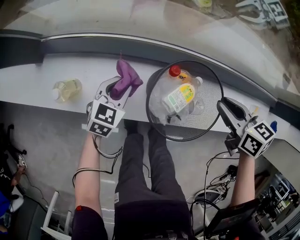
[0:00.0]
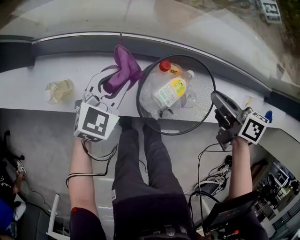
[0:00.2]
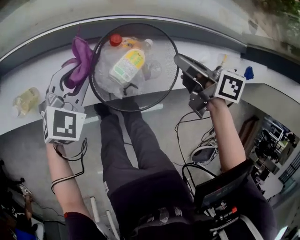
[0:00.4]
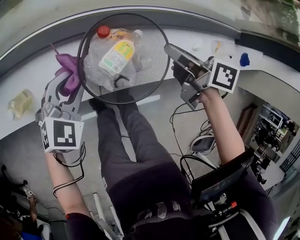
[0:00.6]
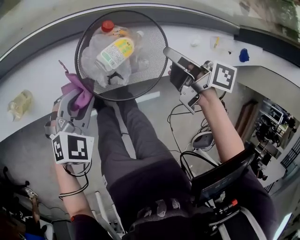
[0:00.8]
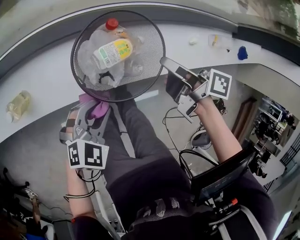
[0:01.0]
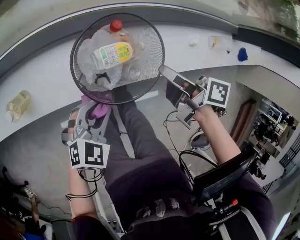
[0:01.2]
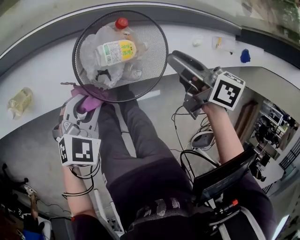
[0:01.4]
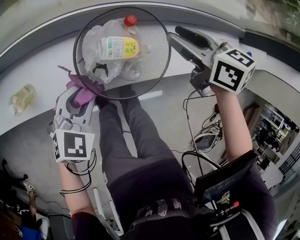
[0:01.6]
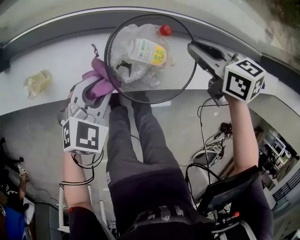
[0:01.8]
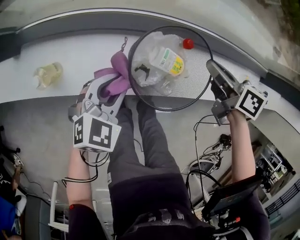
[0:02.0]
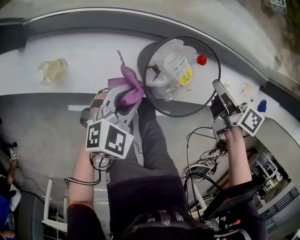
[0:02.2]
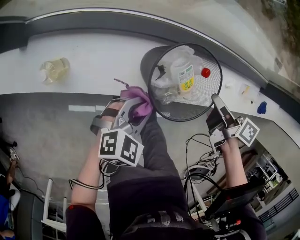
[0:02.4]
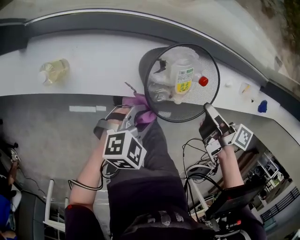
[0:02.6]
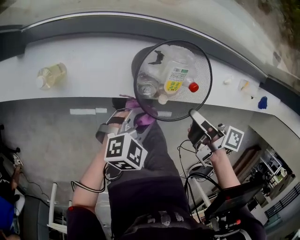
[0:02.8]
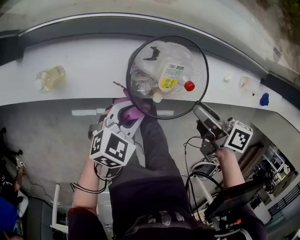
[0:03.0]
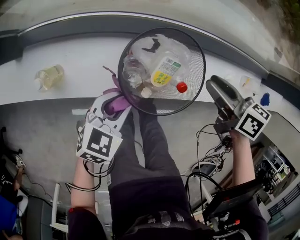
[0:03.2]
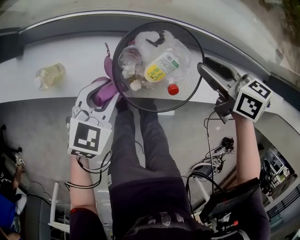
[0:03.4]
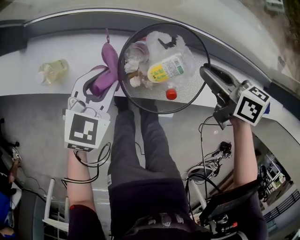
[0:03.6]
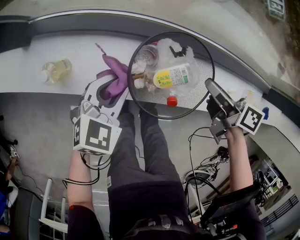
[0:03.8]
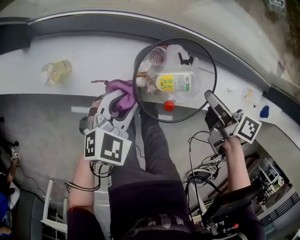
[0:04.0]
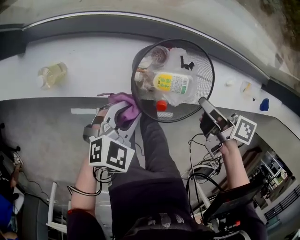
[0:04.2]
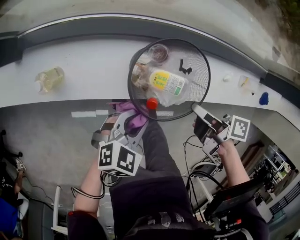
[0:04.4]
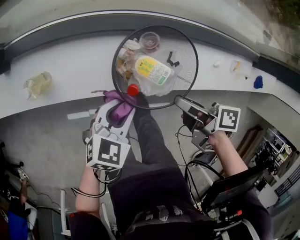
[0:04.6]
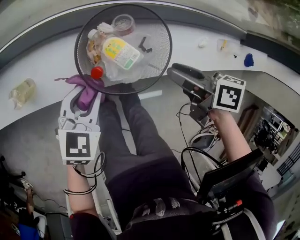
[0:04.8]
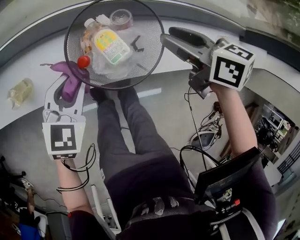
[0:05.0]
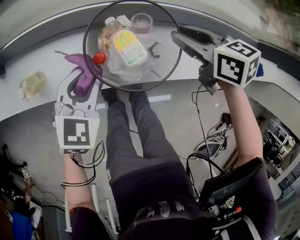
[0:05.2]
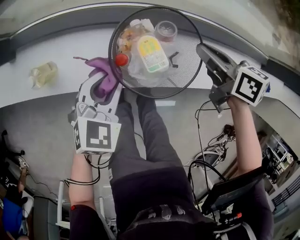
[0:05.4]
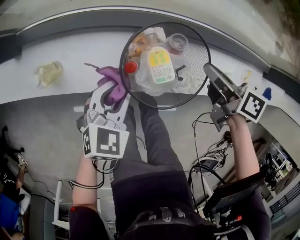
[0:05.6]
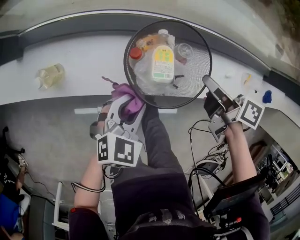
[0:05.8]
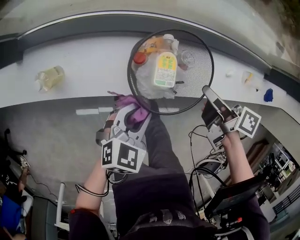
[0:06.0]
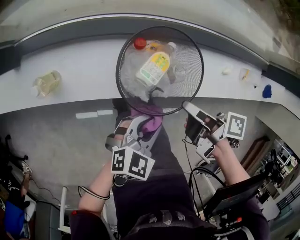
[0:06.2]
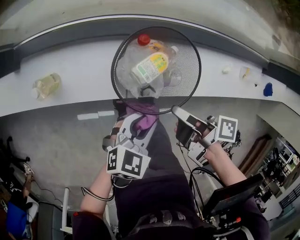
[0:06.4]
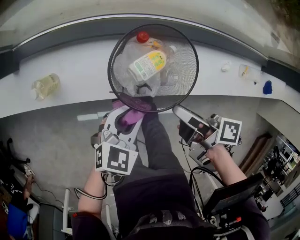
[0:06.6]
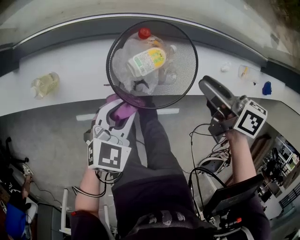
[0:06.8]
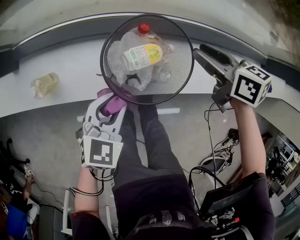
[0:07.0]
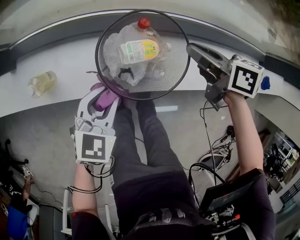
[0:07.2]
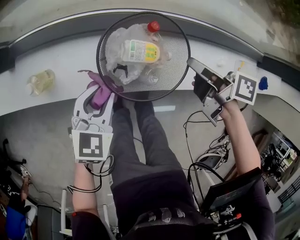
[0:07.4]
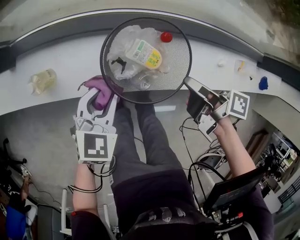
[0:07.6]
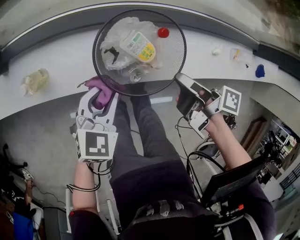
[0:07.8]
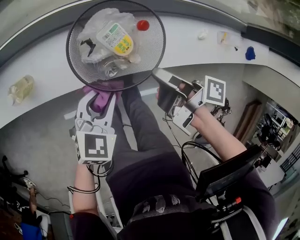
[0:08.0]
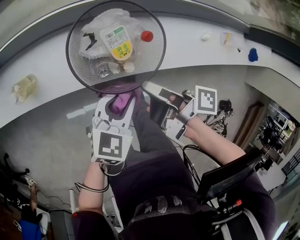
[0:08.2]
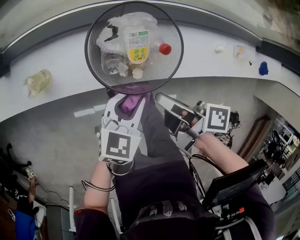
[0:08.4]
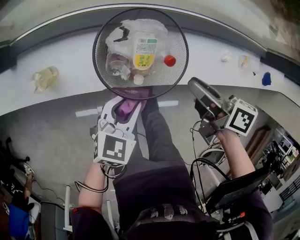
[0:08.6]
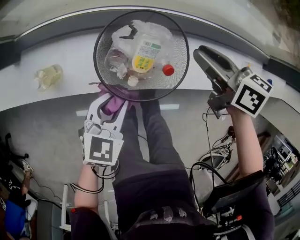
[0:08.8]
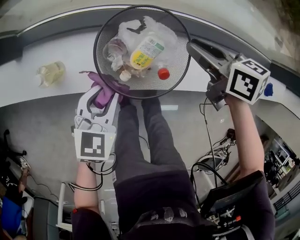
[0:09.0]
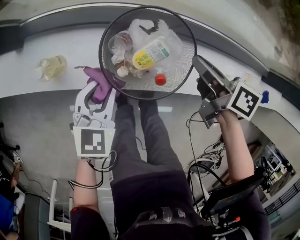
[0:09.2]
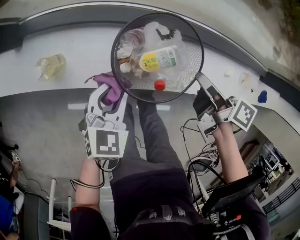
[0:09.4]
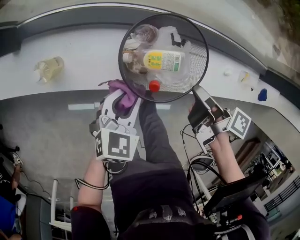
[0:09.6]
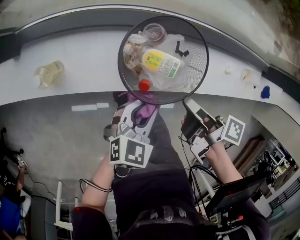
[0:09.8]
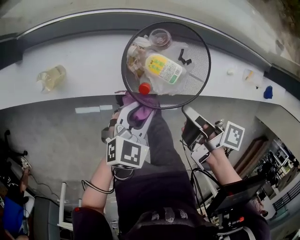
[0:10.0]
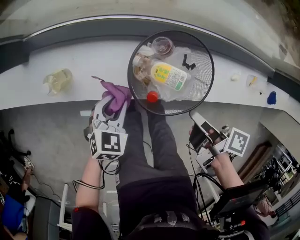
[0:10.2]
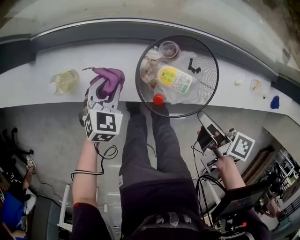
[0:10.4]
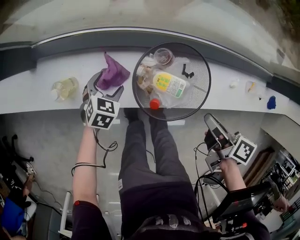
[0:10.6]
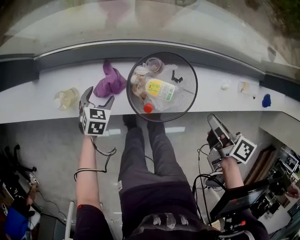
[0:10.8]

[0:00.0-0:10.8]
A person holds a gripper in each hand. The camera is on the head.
0:00.0 to 0:01.6: The left gripper is displaced upward, backward and to the right by roughly 15 cm, and turns by roughly 20 degrees, while the right gripper goes backward and returns, some 10 cm each way.
0:01.6 to 0:03.0: The right gripper moves backward, approximately 15 cm, and swivels roughly 40 degrees.
0:03.0 to 0:04.6: The right gripper reaches some 10 cm forward, then returns; the left gripper reaches roughly 10 cm forward, then returns.
0:04.6 to 0:06.2: The left gripper is displaced to the right by some 5 cm, and reaches approximately 10 cm forward, then returns. Meanwhile the right gripper moves some 15 cm forward and comes back.
0:06.2 to 0:07.8: The left gripper heads to the left and forward, covering about 10 cm. Meanwhile the right gripper travels forward and back again, some 15 cm each way, and opens, then closes again.
0:07.8 to 0:09.2: The left gripper travels to the left by some 10 cm. Meanwhile the right gripper travels forward and to the left by approximately 10 cm, and twists approximately 40 degrees counterclockwise, seen from behind.
0:09.2 to 0:10.8: The left gripper travels downward by roughly 10 cm, reaches some 15 cm to the right, then returns, and opens its fingers, while the right gripper travels backward, to the right and upward by roughly 15 cm.

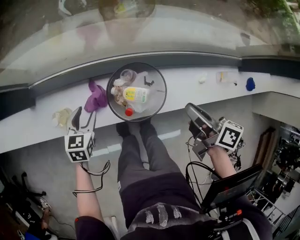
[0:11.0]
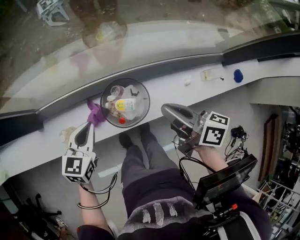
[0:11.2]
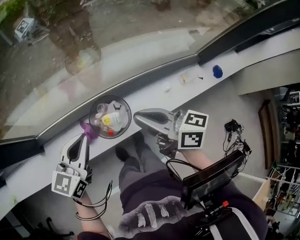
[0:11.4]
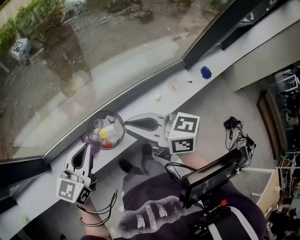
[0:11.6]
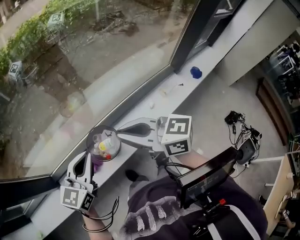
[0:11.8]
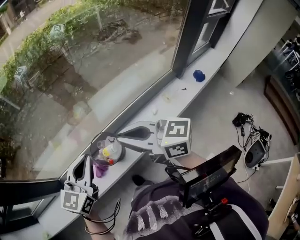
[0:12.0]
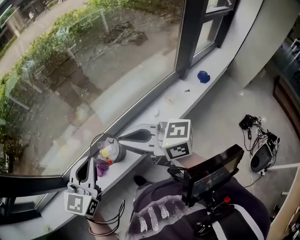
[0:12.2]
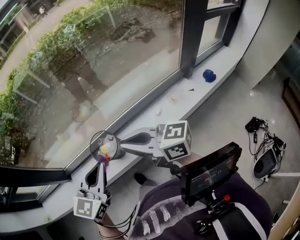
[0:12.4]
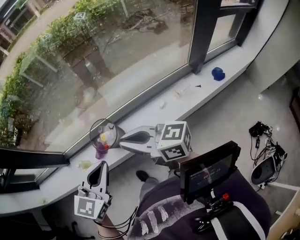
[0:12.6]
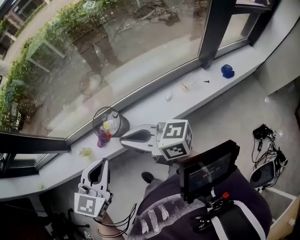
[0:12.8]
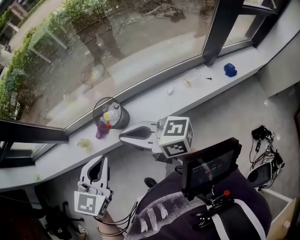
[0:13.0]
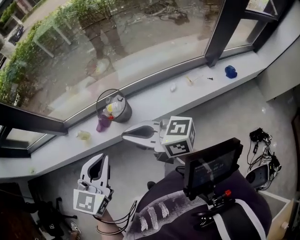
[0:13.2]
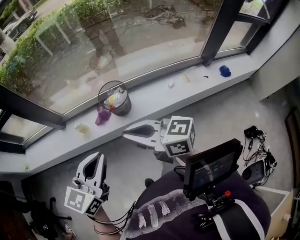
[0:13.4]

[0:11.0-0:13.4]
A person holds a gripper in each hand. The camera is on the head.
0:11.0 to 0:12.2: The right gripper goes some 35 cm upward and backward, and angles its fingers upward, by approximately 30 degrees. The left gripper goes some 50 cm upward and to the right, tilts its fingers approximately 30 degrees upward, and closes its fingers.
0:12.2 to 0:13.4: Both grippers travel together backward and to the left, approximately 25 cm.

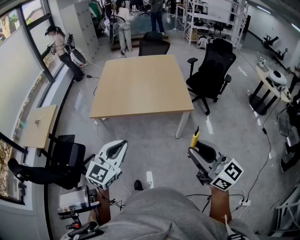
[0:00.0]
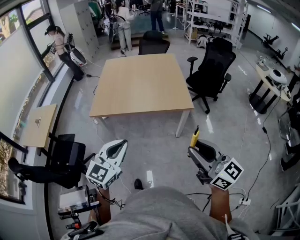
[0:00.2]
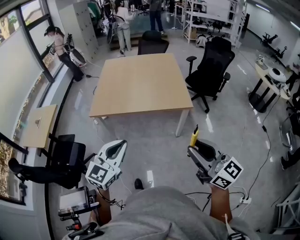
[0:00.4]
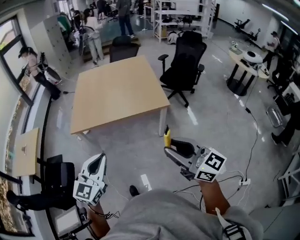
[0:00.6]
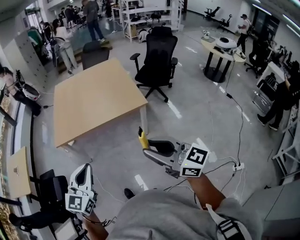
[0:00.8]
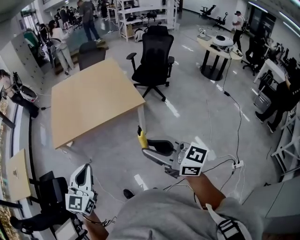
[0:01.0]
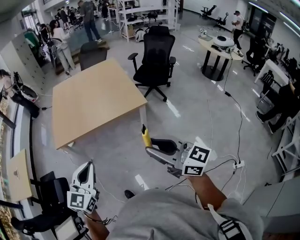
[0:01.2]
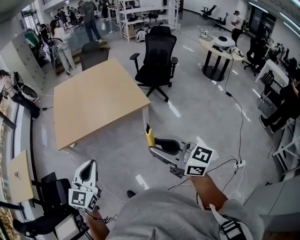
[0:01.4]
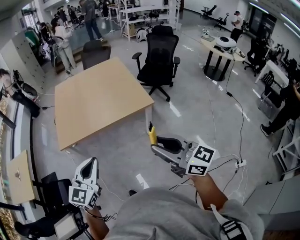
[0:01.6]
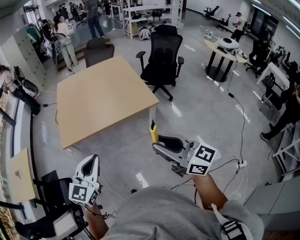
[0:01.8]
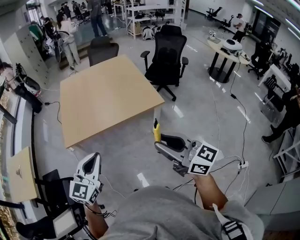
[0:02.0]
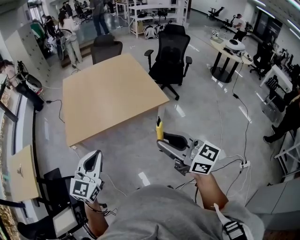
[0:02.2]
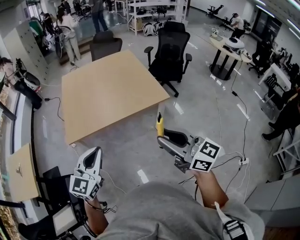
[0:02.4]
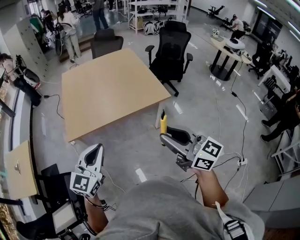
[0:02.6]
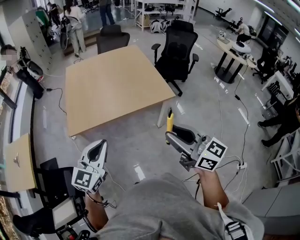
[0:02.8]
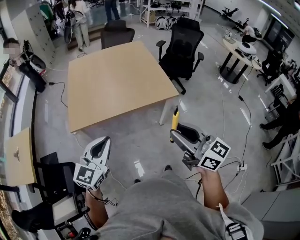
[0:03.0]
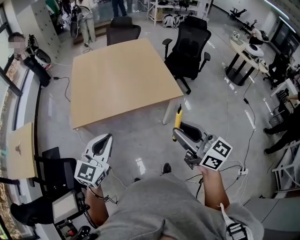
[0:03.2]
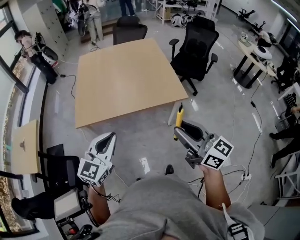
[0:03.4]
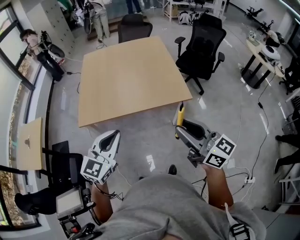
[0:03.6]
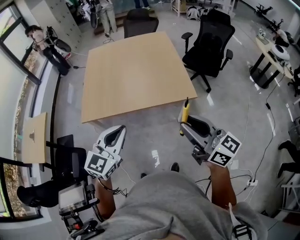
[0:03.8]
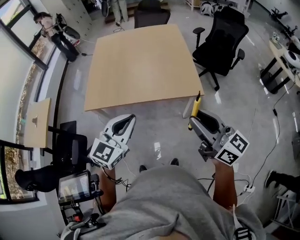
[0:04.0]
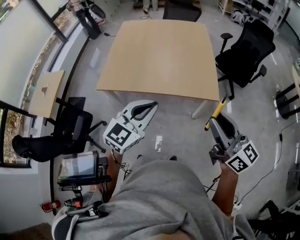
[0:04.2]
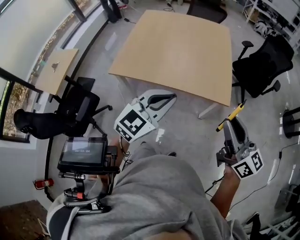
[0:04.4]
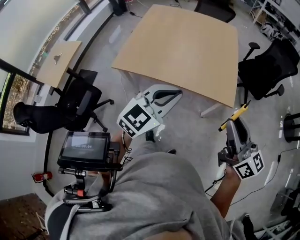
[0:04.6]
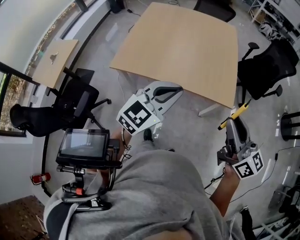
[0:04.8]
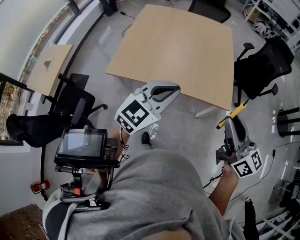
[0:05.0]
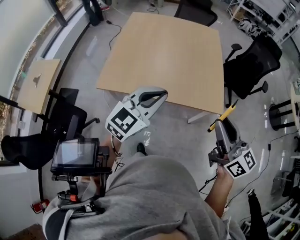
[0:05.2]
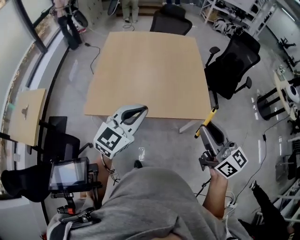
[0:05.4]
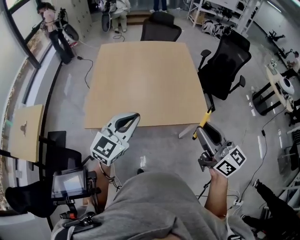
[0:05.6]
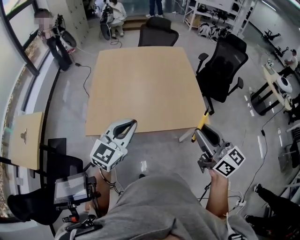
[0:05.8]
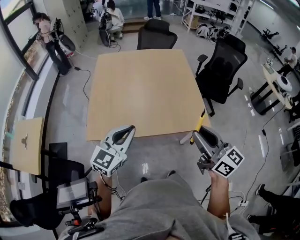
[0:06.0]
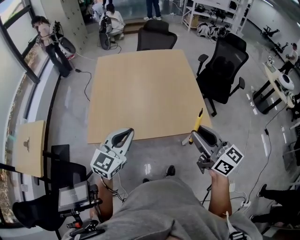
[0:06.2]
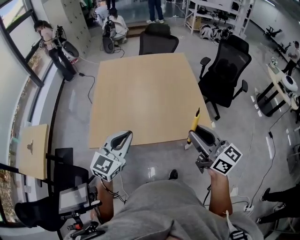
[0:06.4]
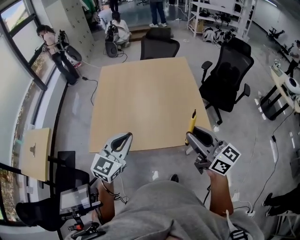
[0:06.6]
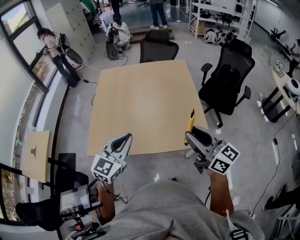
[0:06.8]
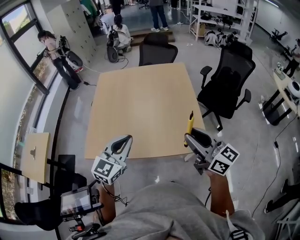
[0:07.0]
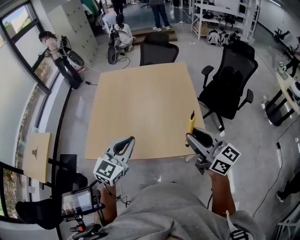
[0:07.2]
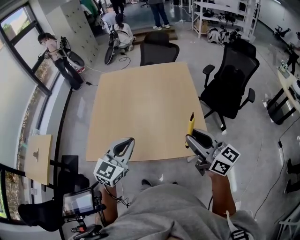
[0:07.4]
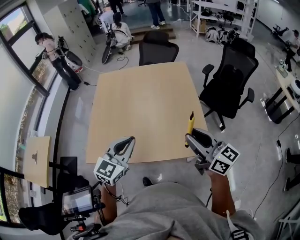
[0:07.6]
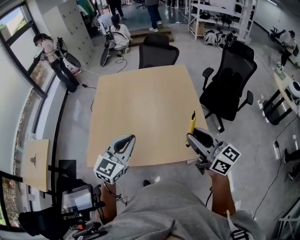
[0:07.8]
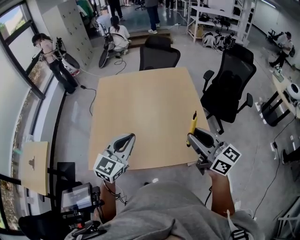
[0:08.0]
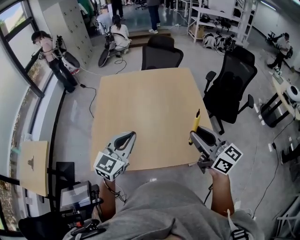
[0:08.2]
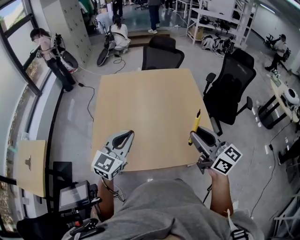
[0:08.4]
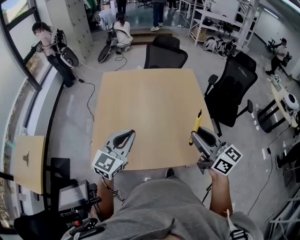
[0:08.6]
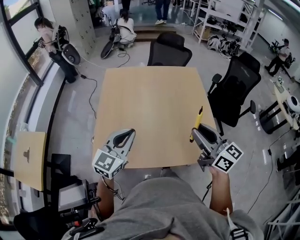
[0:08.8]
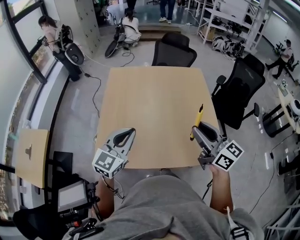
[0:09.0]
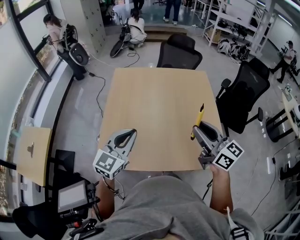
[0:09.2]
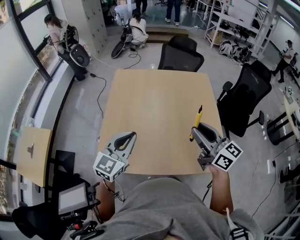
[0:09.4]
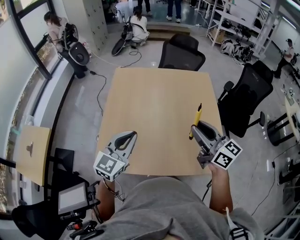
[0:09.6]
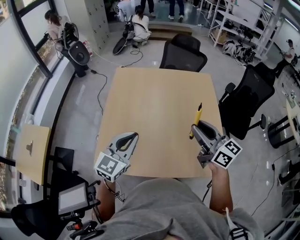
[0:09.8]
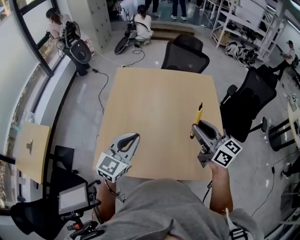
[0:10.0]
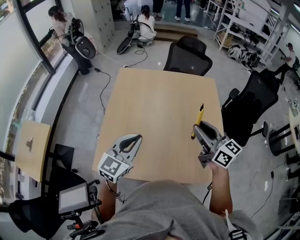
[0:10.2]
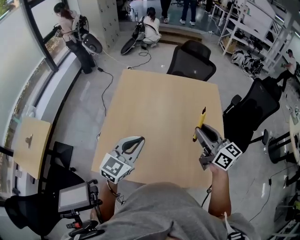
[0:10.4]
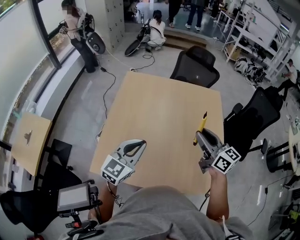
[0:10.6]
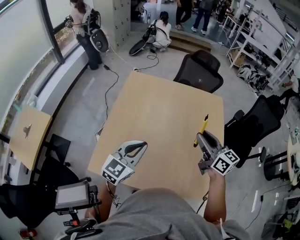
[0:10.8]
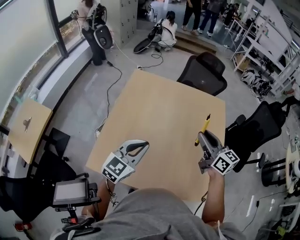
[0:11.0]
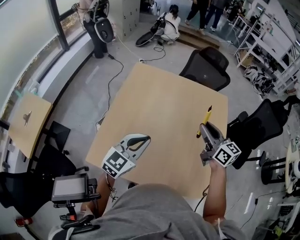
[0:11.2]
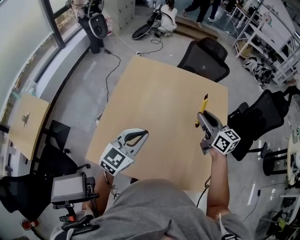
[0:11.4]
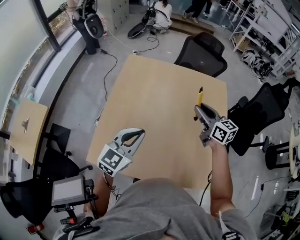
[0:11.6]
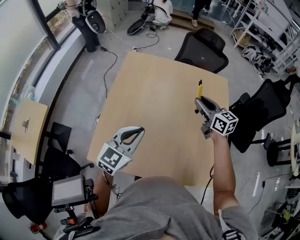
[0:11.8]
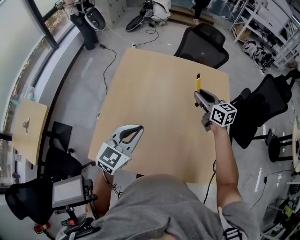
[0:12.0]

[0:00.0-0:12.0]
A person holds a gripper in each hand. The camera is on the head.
0:00.0 to 0:01.6: The right gripper shifts by approximately 5 cm; the left gripper ends up approximately 5 cm from where it was.
0:01.6 to 0:03.0: Both grippers travel together to the left and forward, roughly 15 cm.
0:03.0 to 0:04.4: Both grippers move to the right and forward, some 25 cm.
0:04.4 to 0:06.0: Both grippers travel together to the left and forward, some 25 cm.
0:06.0 to 0:07.6: The left gripper heads to the right and forward, covering approximately 20 cm; the right gripper heads forward and to the right, covering roughly 20 cm.
0:07.6 to 0:09.0: The two grippers go about 20 cm to the left and forward.
0:09.0 to 0:10.4: The right gripper is displaced forward by about 15 cm, while the left gripper heads forward, covering roughly 10 cm.
0:10.4 to 0:12.0: The right gripper travels forward and downward by roughly 25 cm; the left gripper travels forward by approximately 5 cm.
